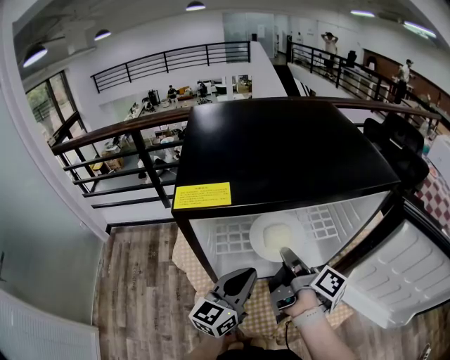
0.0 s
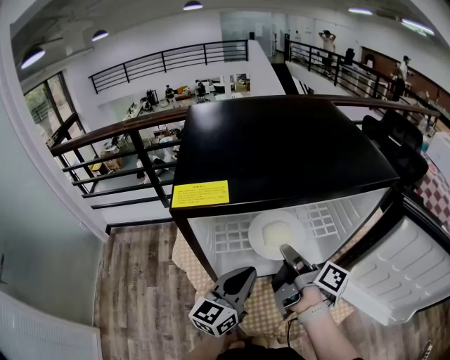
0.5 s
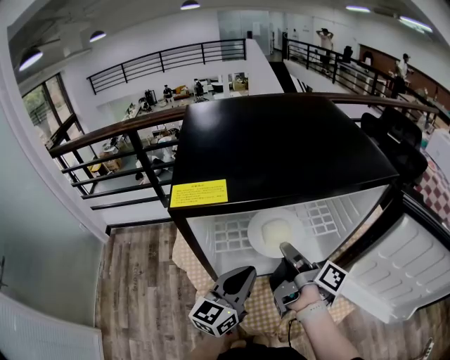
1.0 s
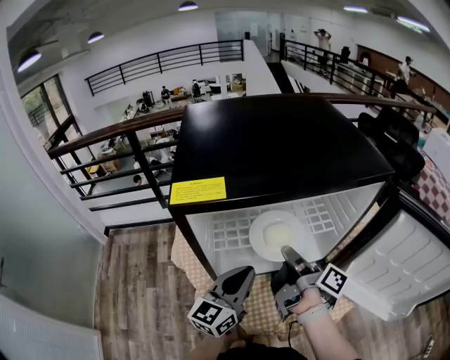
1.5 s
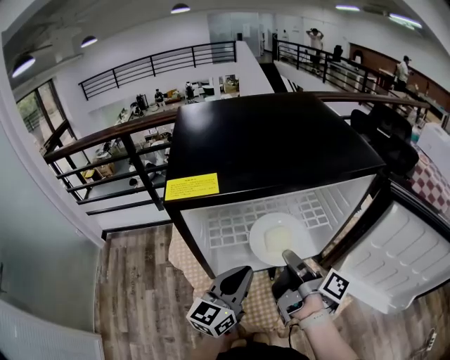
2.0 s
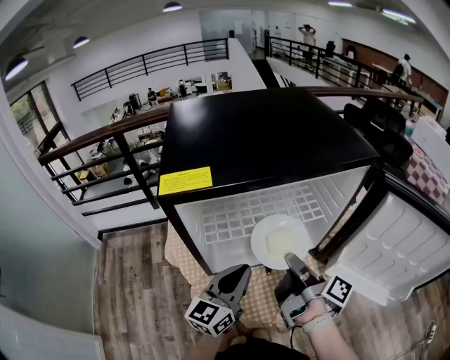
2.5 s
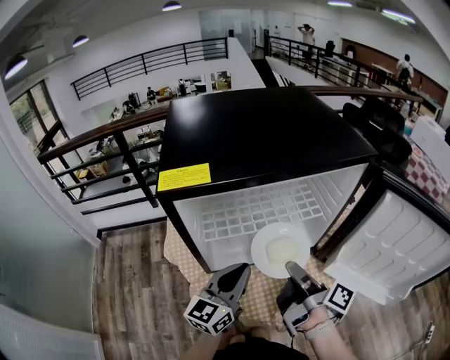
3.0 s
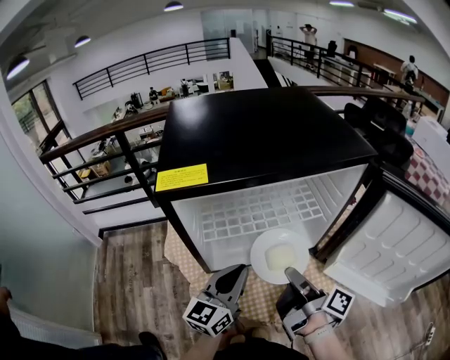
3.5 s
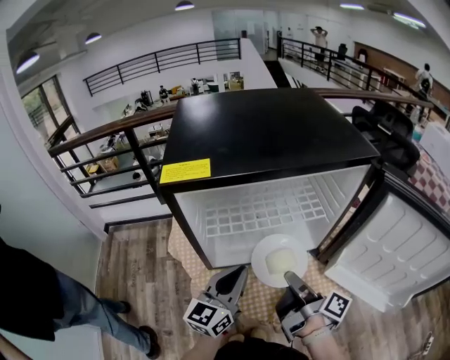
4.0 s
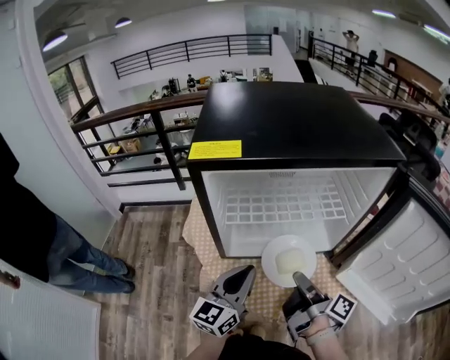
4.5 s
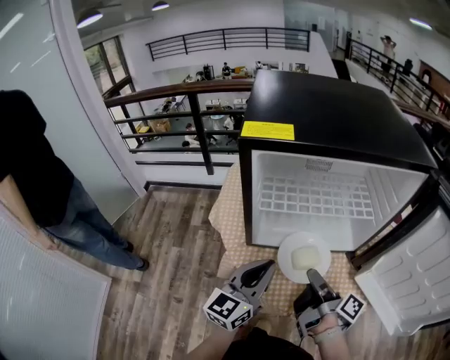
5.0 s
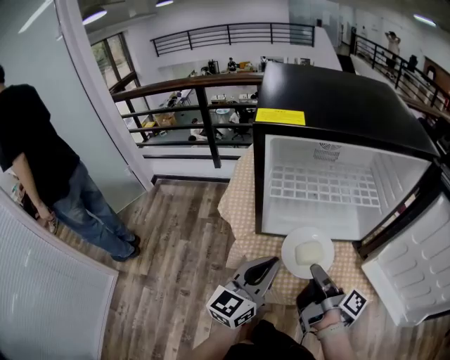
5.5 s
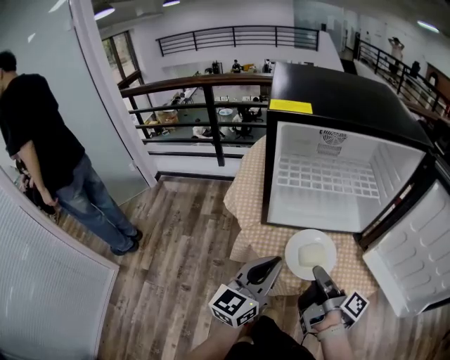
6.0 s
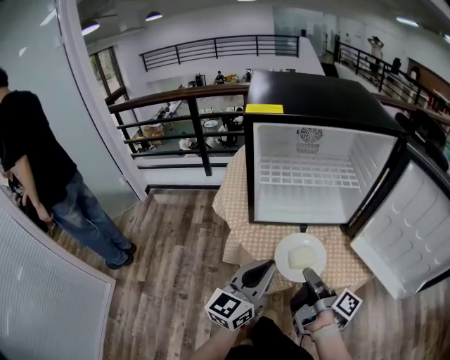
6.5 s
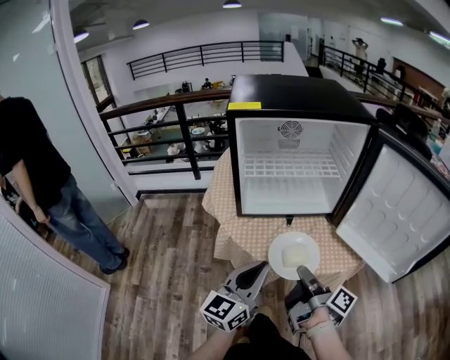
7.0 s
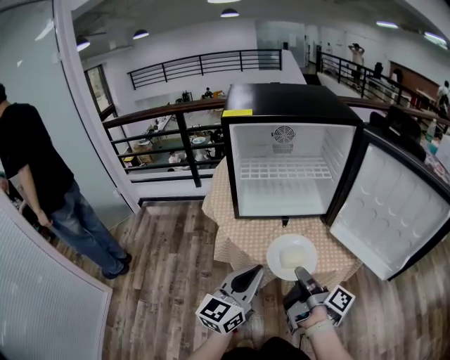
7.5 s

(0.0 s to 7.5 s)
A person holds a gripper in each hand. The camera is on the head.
0.0 s - 2.0 s: The grippers make only small movements.
2.0 s - 4.0 s: The right gripper goes approximately 5 cm backward.
4.0 s - 5.5 s: The right gripper changes place by roughly 5 cm; the left gripper travels backward by roughly 10 cm.
5.5 s - 7.5 s: The two grippers go approximately 15 cm backward.

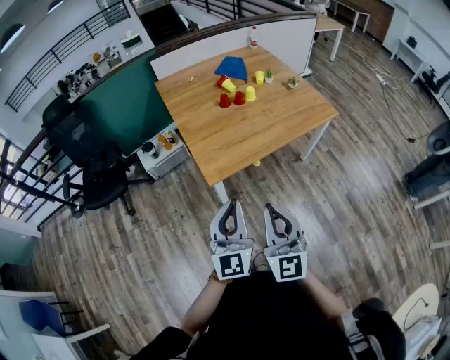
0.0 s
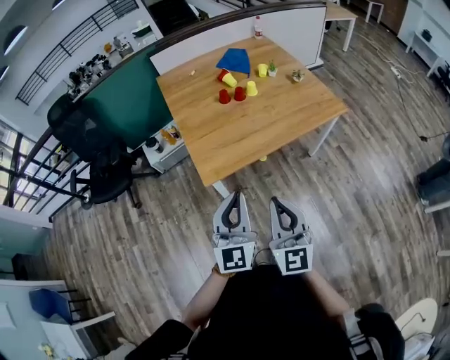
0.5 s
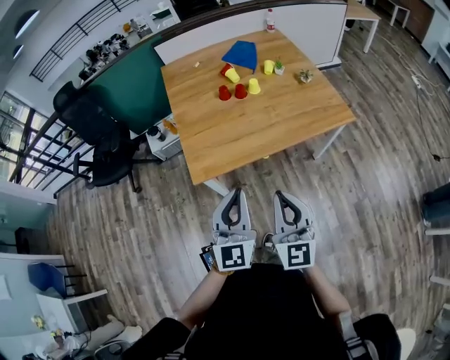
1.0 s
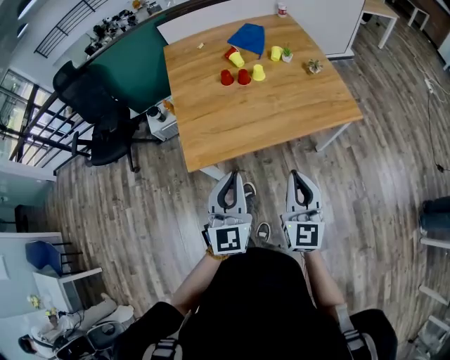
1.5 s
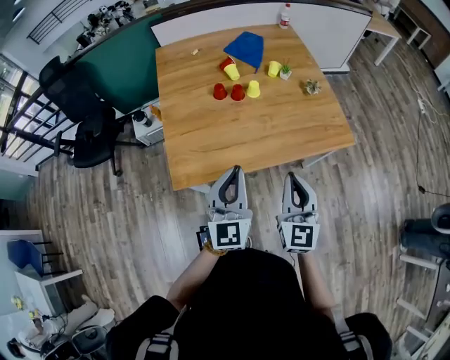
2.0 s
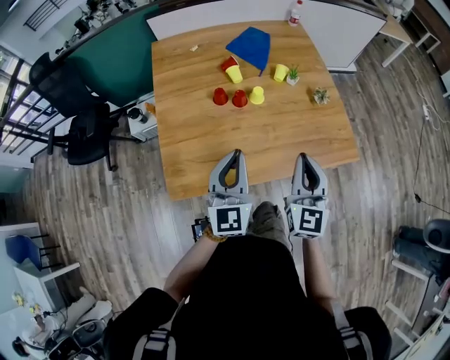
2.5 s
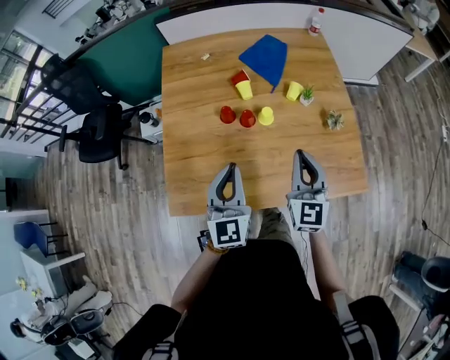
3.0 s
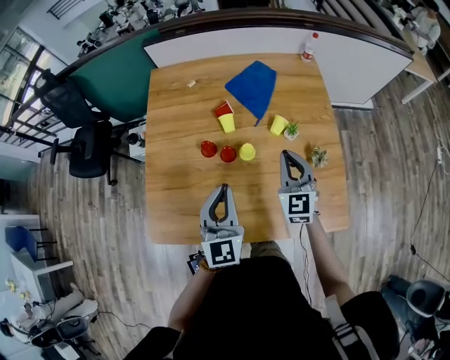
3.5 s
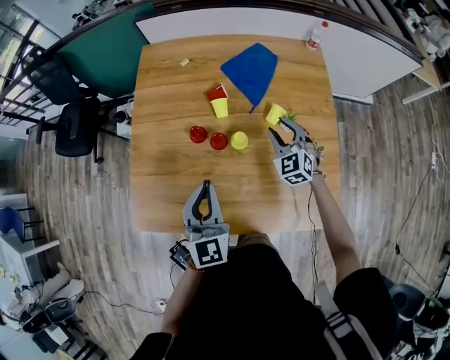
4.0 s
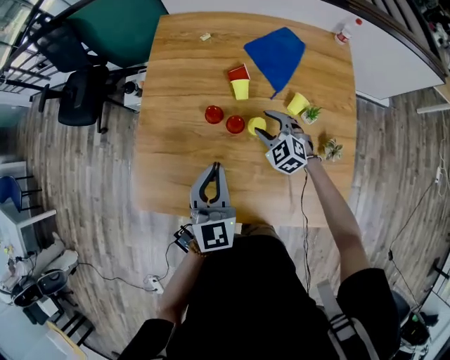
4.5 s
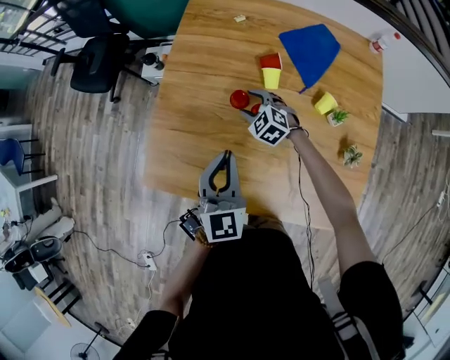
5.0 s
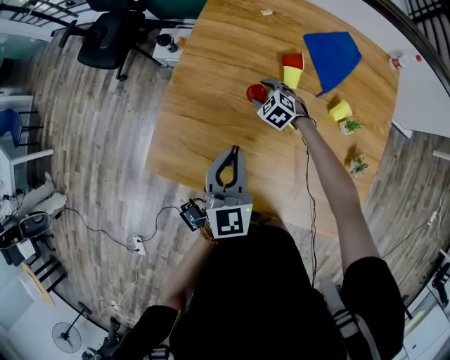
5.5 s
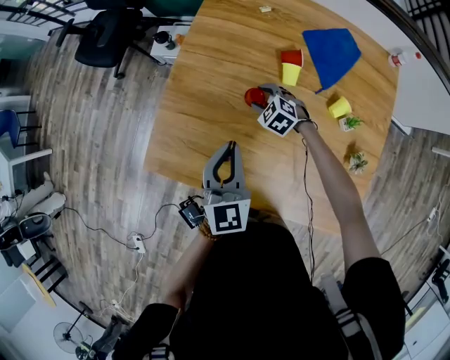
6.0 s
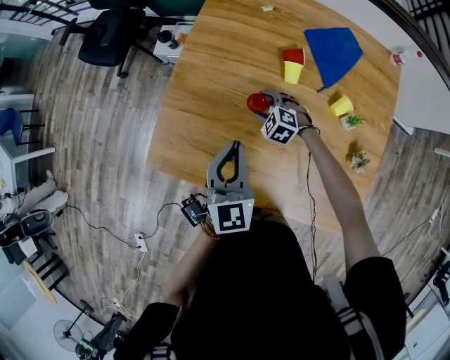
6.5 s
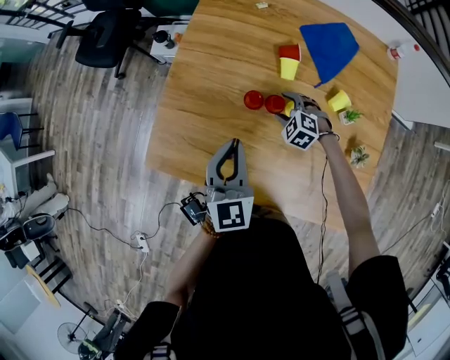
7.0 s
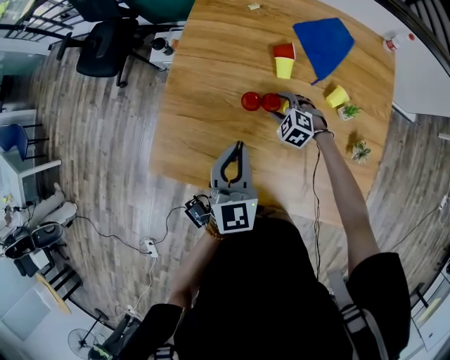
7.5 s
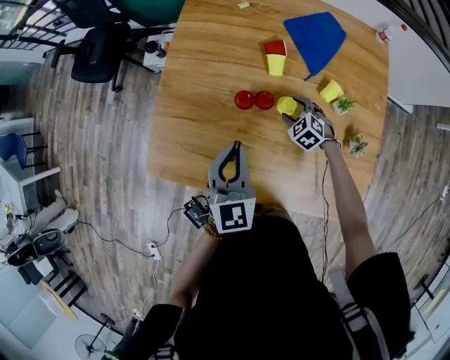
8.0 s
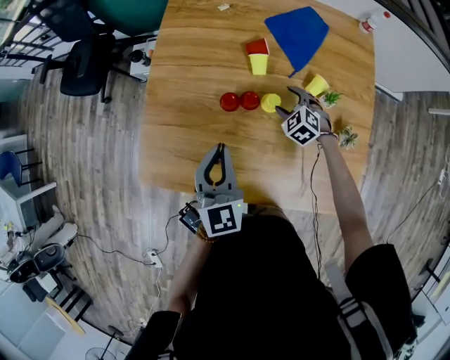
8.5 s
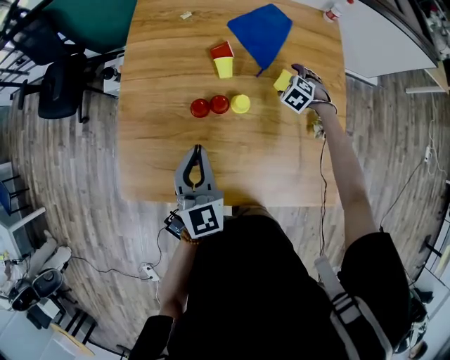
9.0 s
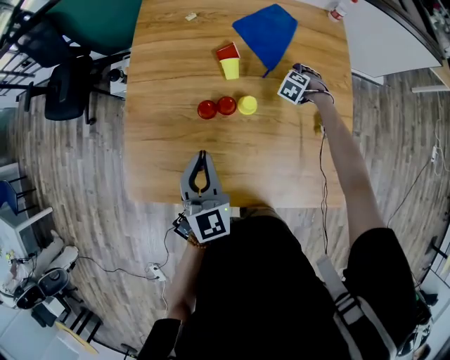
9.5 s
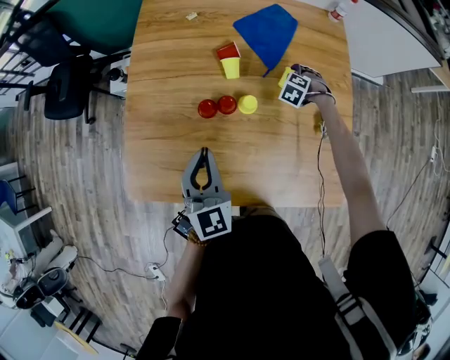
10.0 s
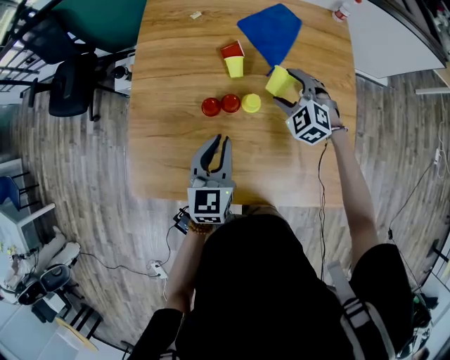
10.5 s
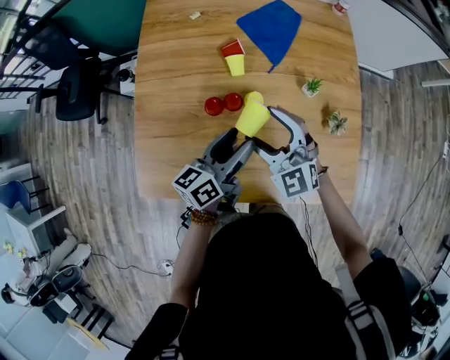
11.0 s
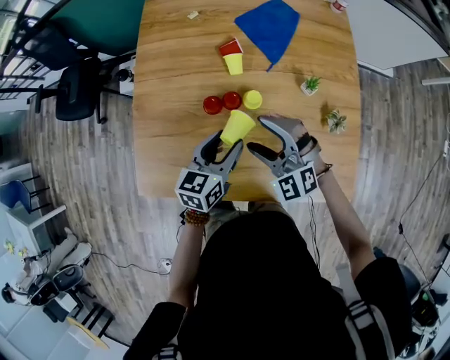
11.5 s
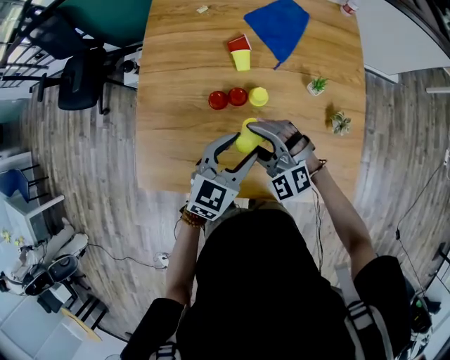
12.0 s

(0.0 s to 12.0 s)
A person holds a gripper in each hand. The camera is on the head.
0.0 s - 2.0 s: The two grippers go roughly 35 cm forward and to the right.
2.0 s - 4.0 s: The left gripper heads forward, covering some 30 cm, and swivels roughly 20 degrees; the right gripper moves forward, some 50 cm, turns by some 50 degrees, and opens up.
4.0 s - 6.0 s: The left gripper shifts by about 10 cm; the right gripper moves about 30 cm, and changes its angle by roughly 50 degrees.
6.0 s - 8.0 s: The right gripper travels to the right and backward by approximately 15 cm.
8.0 s - 10.0 s: The right gripper shifts by roughly 20 cm, and changes its angle by roughly 30 degrees.
10.0 s - 12.0 s: The left gripper moves to the right, approximately 10 cm, turns by approximately 40 degrees, and opens its fingers, while the right gripper shifts roughly 35 cm backward, to the left and upward, and tips its fingers upward by approximately 40 degrees.

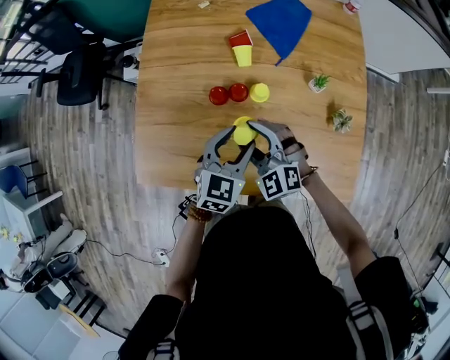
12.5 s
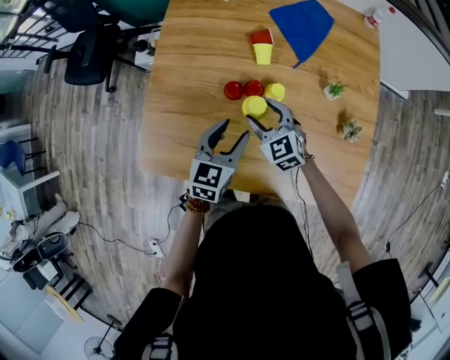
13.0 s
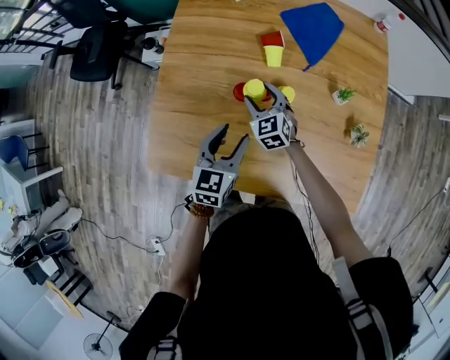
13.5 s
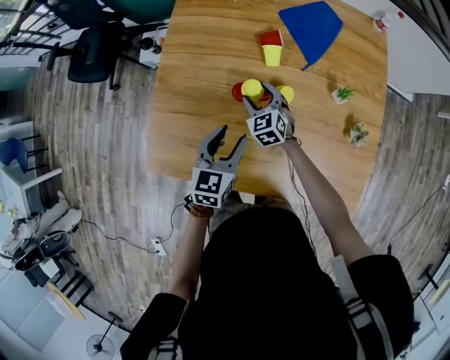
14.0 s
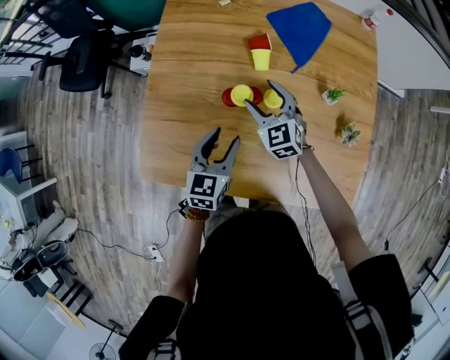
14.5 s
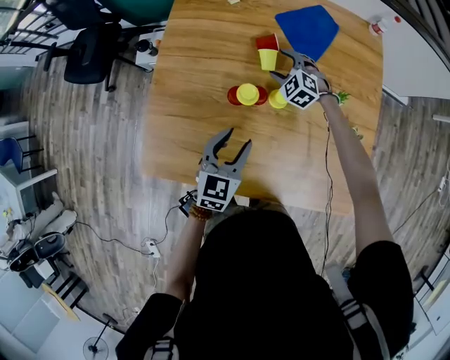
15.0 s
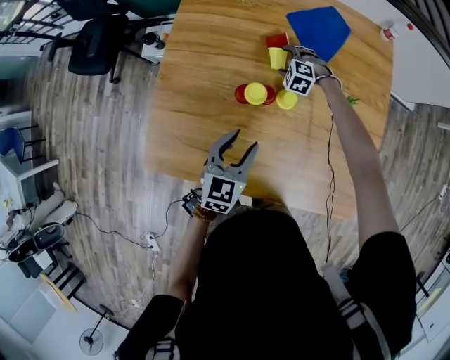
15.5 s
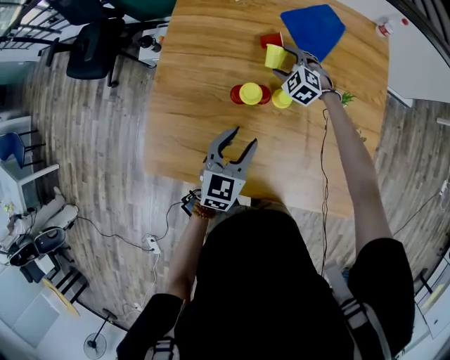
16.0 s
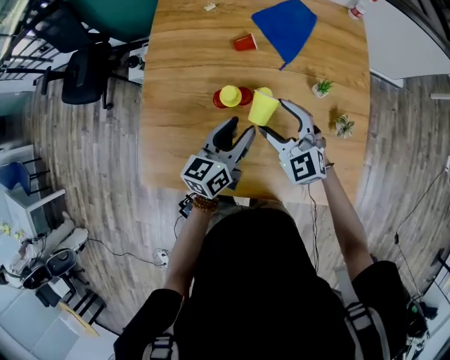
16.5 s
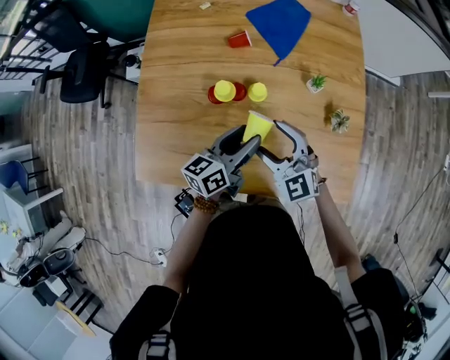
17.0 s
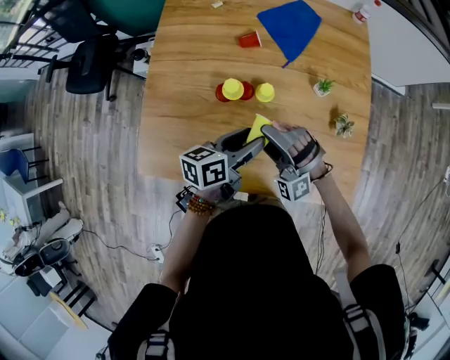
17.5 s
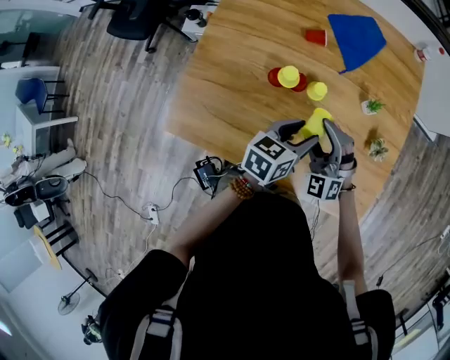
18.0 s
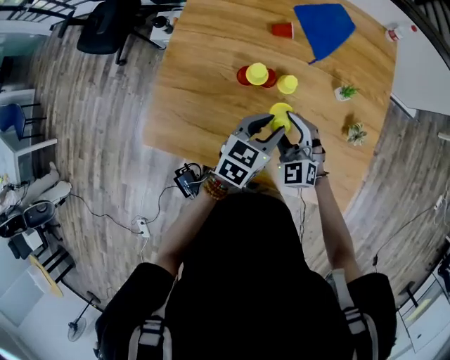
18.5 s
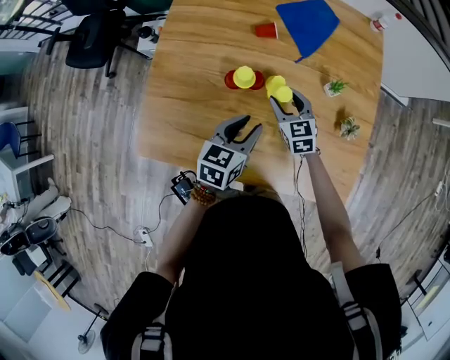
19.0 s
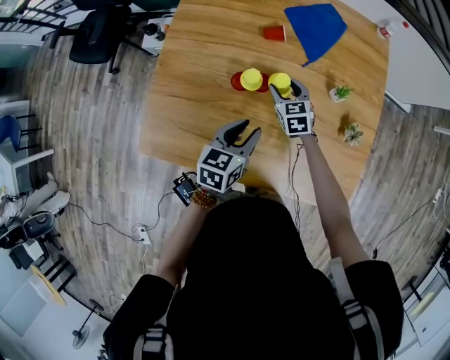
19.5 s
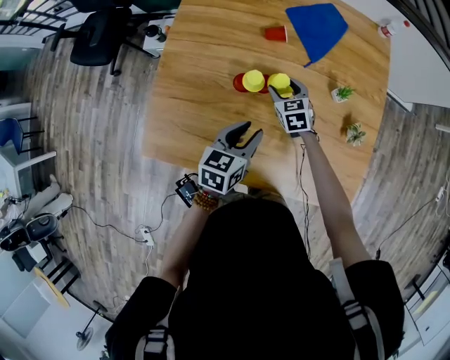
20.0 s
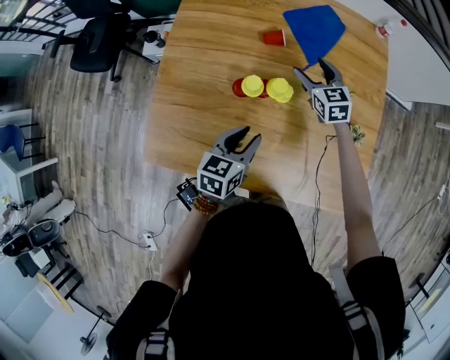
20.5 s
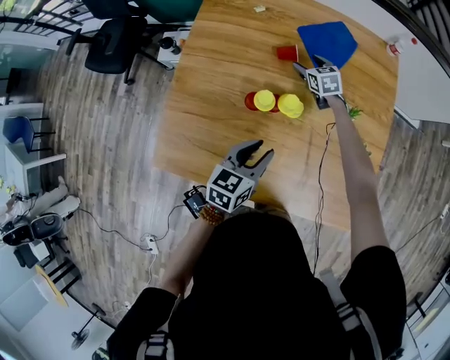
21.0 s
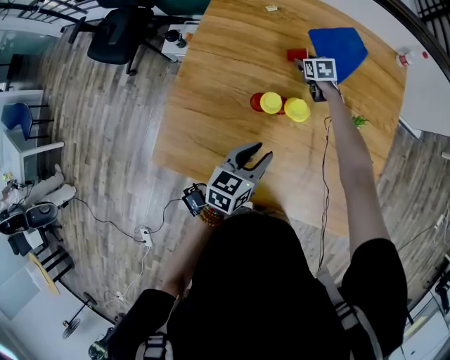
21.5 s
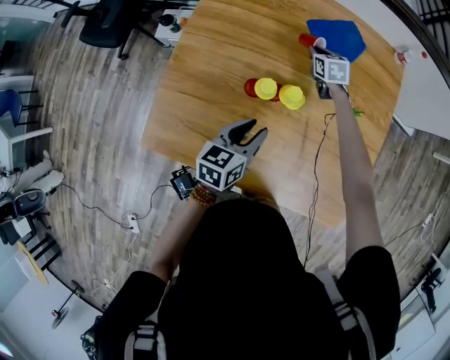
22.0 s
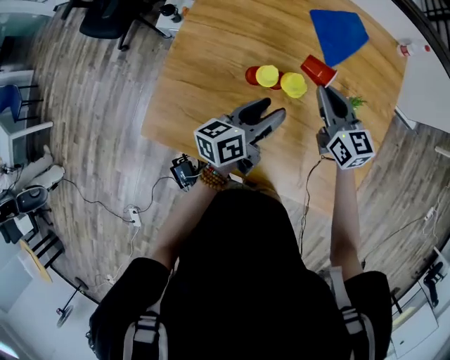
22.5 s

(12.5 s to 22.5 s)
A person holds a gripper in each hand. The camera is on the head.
12.5 s - 14.5 s: The left gripper travels to the left by about 10 cm, and changes its angle by about 20 degrees, while the right gripper travels forward by approximately 15 cm, and swivels roughly 20 degrees.
14.5 s - 16.5 s: The left gripper moves to the right, some 5 cm, and rotates about 30 degrees, while the right gripper shifts some 10 cm backward, upward and to the right.
16.5 s - 18.5 s: The left gripper shifts by some 5 cm, and rotates approximately 20 degrees, while the right gripper goes about 10 cm downward and backward.
18.5 s - 20.5 s: The left gripper goes roughly 5 cm to the left. Meanwhile the right gripper goes approximately 20 cm forward, and changes its angle by approximately 30 degrees.
20.5 s - 22.5 s: The right gripper travels backward and upward by about 10 cm, swivels about 20 degrees, and closes its fingers; the left gripper goes approximately 5 cm forward, and changes its angle by roughly 30 degrees.
